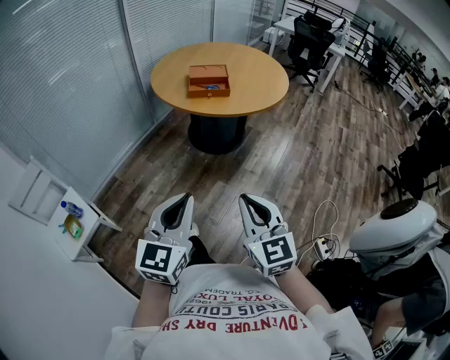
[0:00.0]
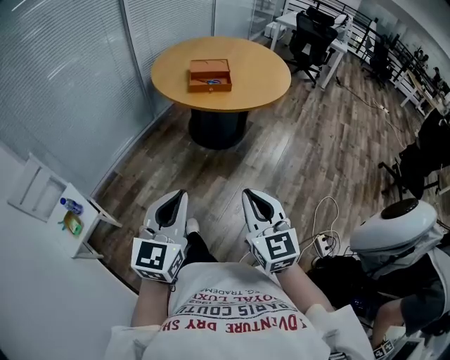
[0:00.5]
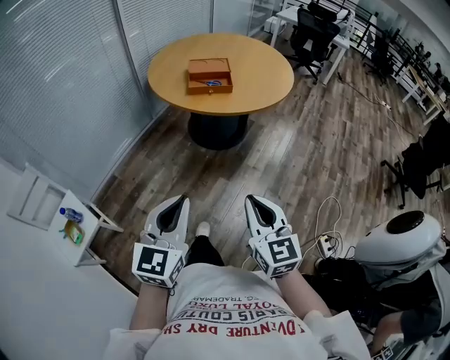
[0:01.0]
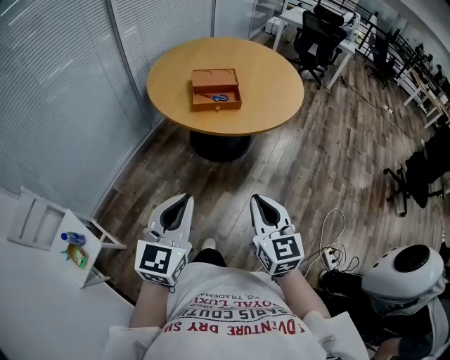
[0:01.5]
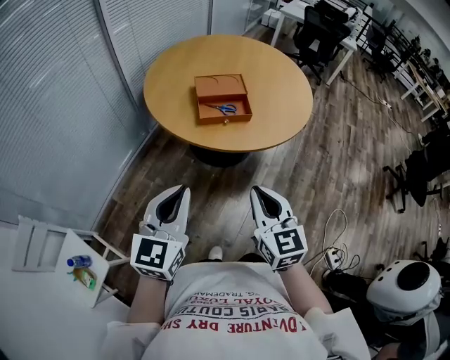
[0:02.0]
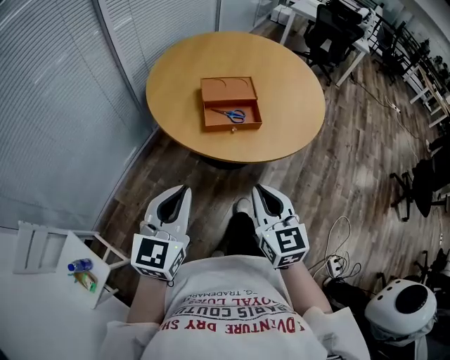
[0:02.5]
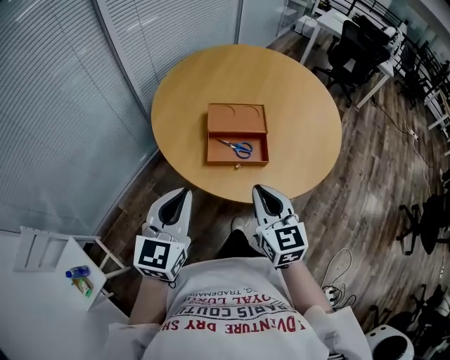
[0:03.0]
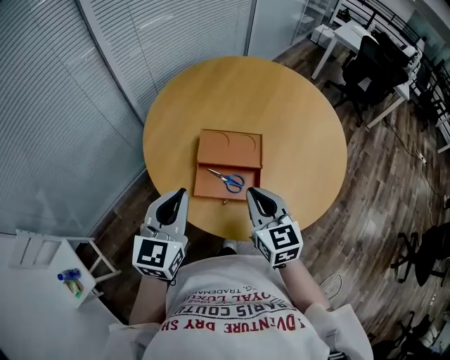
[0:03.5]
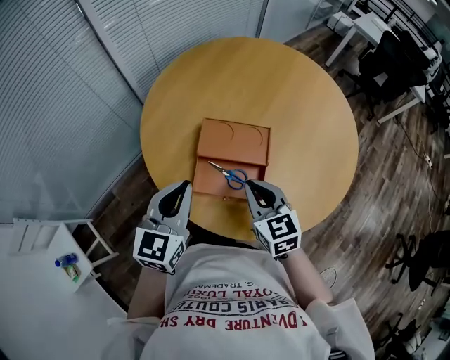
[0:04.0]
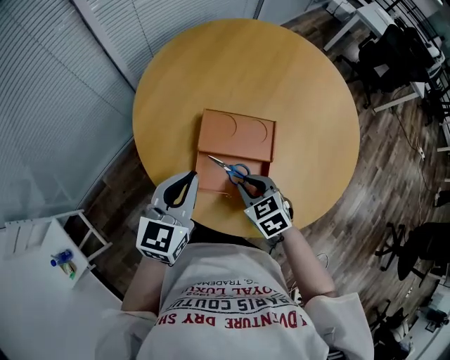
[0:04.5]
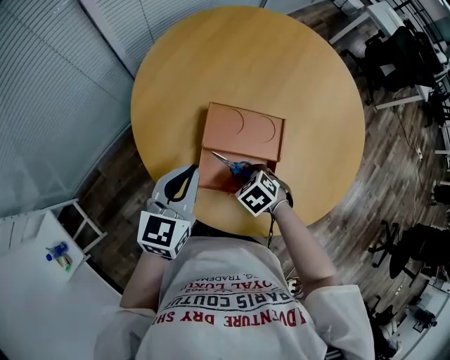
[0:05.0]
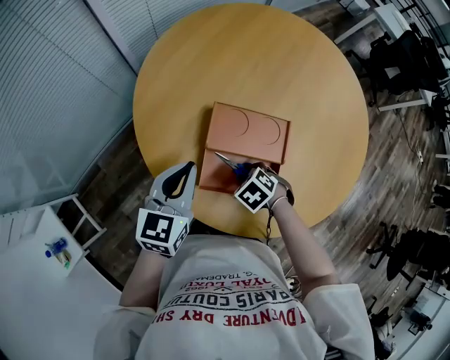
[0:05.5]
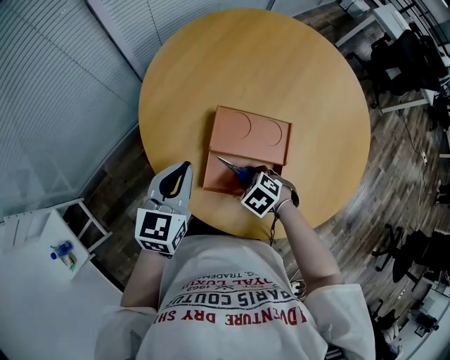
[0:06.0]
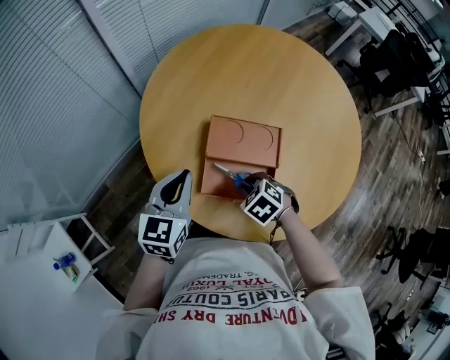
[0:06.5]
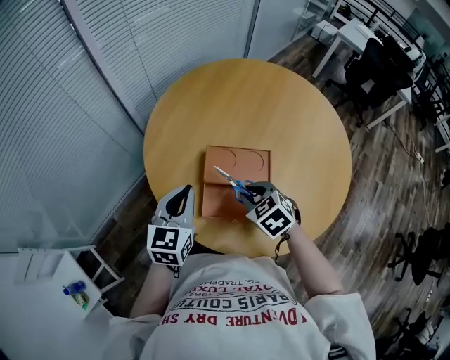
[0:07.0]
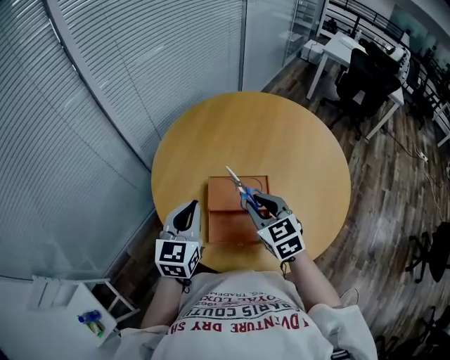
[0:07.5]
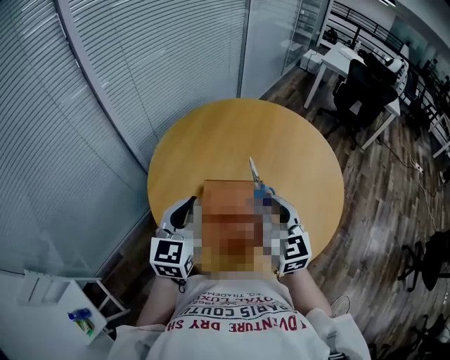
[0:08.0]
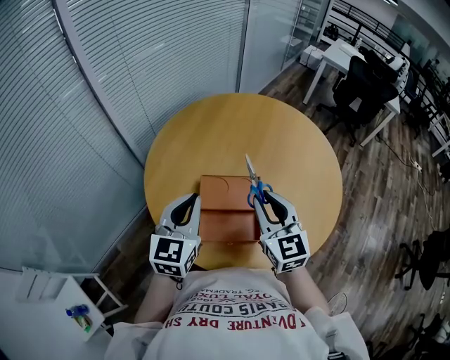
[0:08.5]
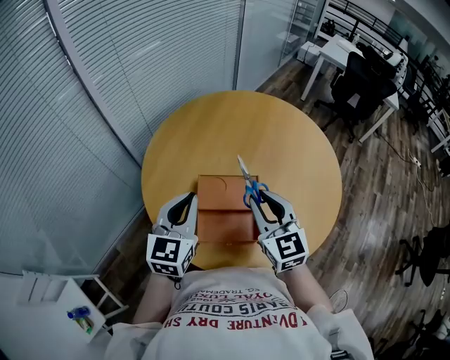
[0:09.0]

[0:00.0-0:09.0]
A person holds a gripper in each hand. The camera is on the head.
0:00.0 to 0:02.0: The two grippers go some 35 cm forward.
0:02.0 to 0:04.5: The two grippers travel together, forward, roughly 40 cm. The right gripper shifts approximately 20 cm downward, and tips its fingers downward by about 40 degrees.
0:04.5 to 0:07.0: The right gripper goes roughly 5 cm upward.
0:07.0 to 0:09.0: The left gripper is displaced upward by approximately 10 cm, while the right gripper shifts approximately 15 cm upward, and tilts its fingers roughly 40 degrees upward.

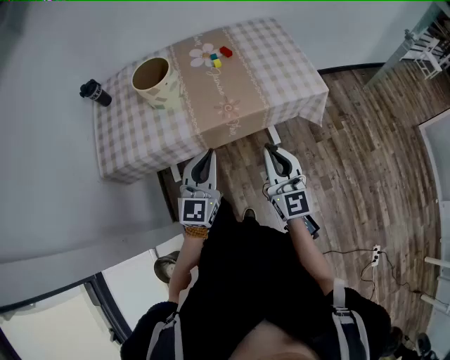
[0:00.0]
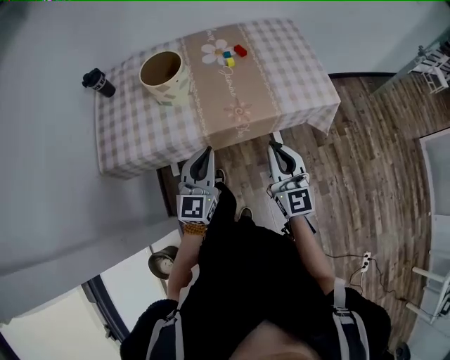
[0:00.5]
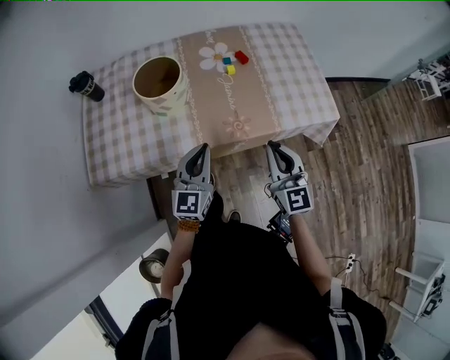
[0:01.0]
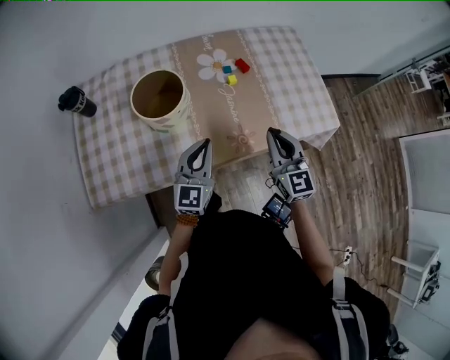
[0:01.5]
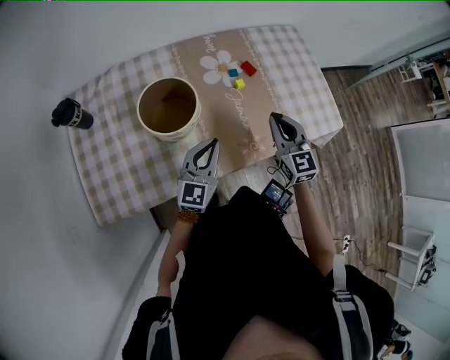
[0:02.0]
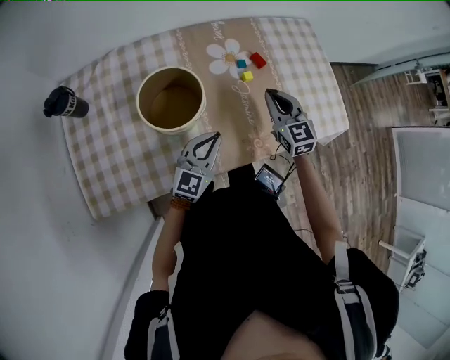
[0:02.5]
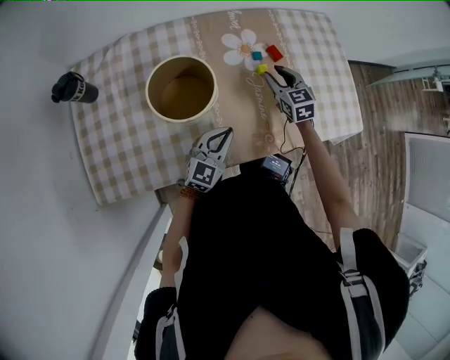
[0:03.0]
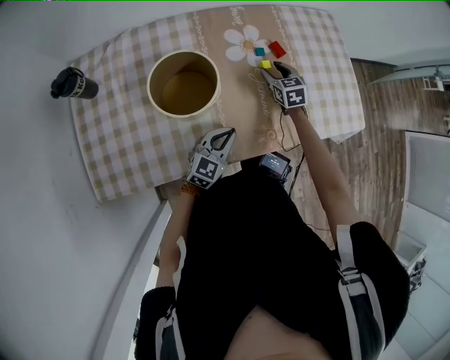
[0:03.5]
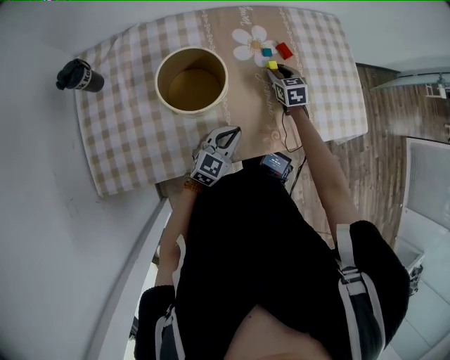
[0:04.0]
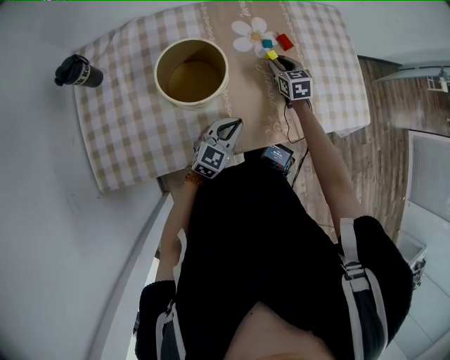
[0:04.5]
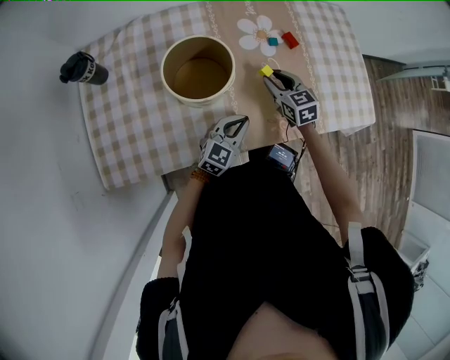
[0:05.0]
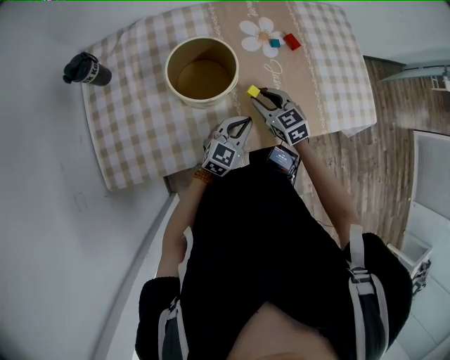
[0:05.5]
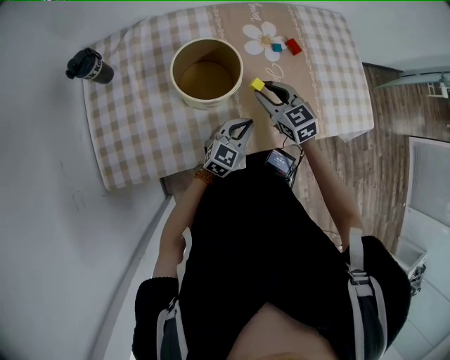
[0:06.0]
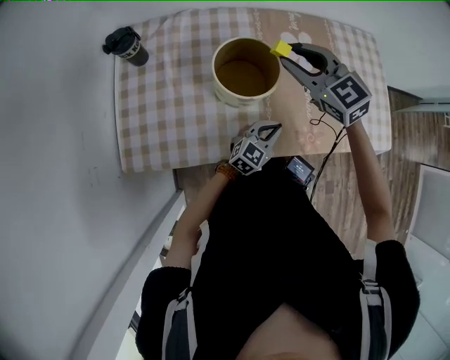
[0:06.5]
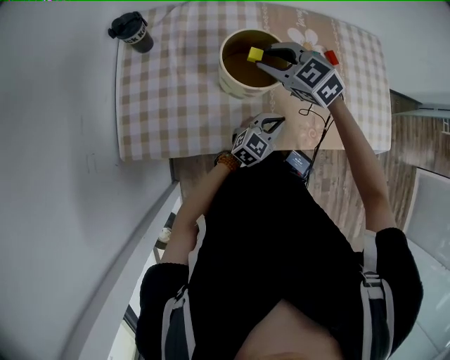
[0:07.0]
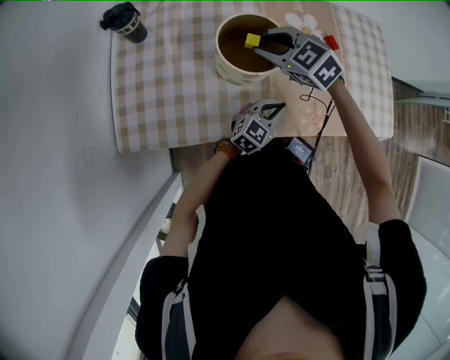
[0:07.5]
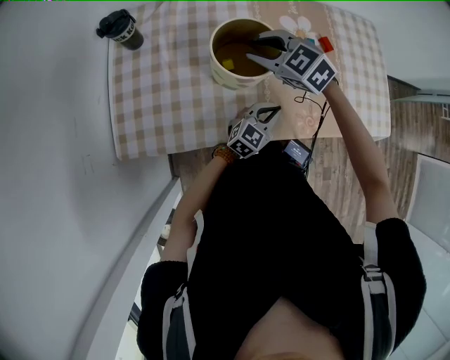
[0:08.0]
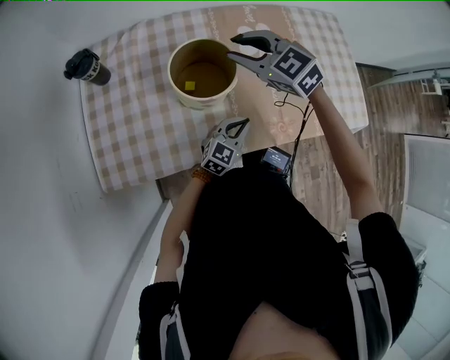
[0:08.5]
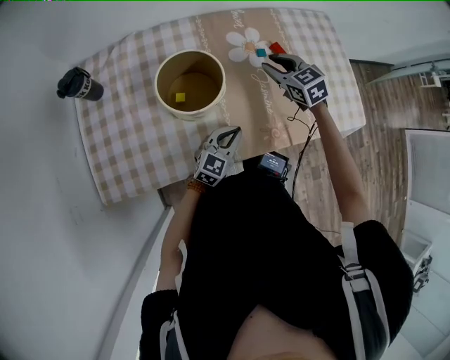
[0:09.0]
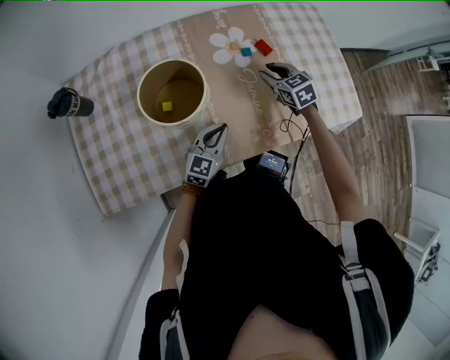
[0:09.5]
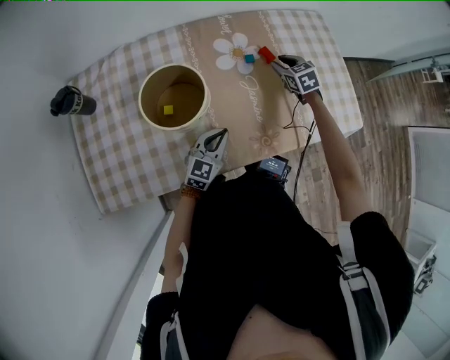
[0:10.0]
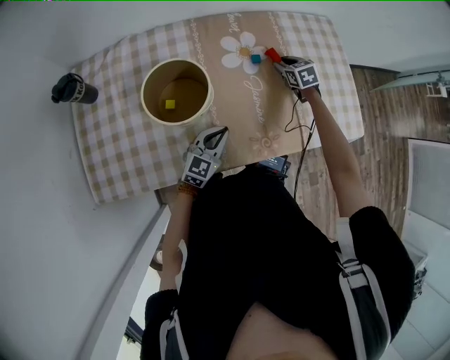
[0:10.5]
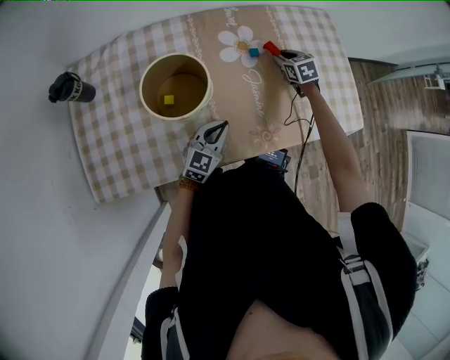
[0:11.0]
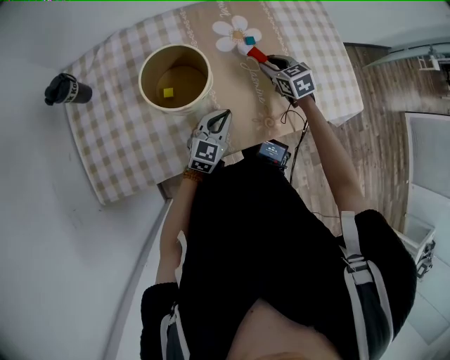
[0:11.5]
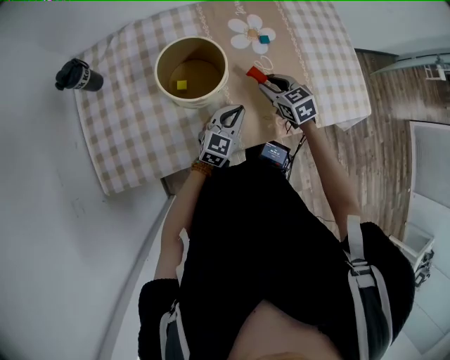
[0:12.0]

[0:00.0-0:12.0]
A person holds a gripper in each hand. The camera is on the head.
0:00.0 to 0:02.0: The right gripper goes some 35 cm forward. The left gripper shifts roughly 30 cm forward and to the left.
0:02.0 to 0:04.0: The left gripper shifts about 15 cm downward, while the right gripper goes about 30 cm downward and forward, changes its angle by about 30 degrees, and opens up.
0:04.0 to 0:06.0: The right gripper heads backward, to the left and upward, covering about 20 cm, and swivels some 20 degrees.
0:06.0 to 0:08.0: The right gripper shifts approximately 15 cm to the left and upward, and swivels approximately 30 degrees.
0:08.0 to 0:10.0: The right gripper goes roughly 40 cm to the right, forward and downward, and turns by roughly 40 degrees.
0:10.0 to 0:12.0: The right gripper heads backward and to the left, covering about 20 cm.

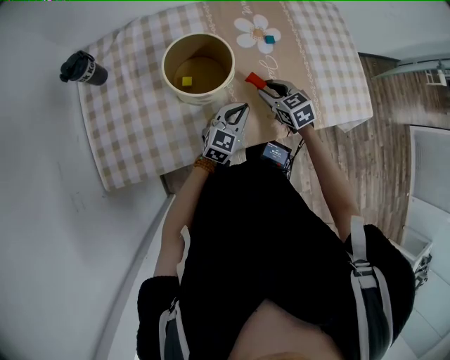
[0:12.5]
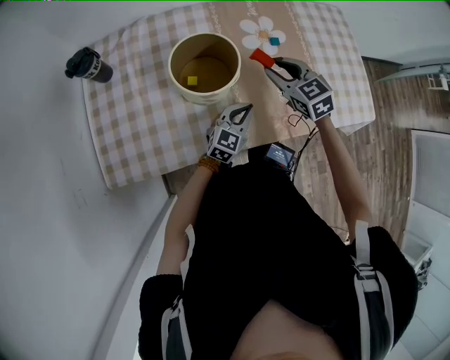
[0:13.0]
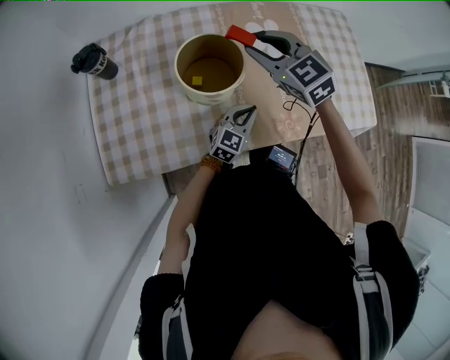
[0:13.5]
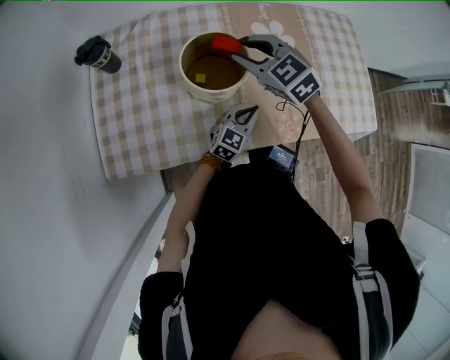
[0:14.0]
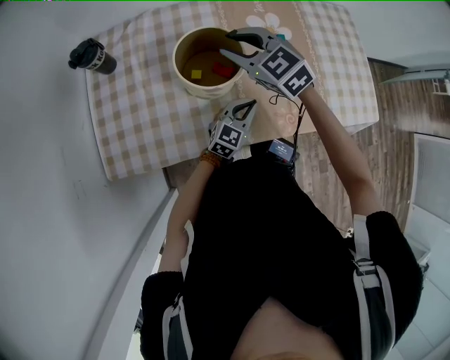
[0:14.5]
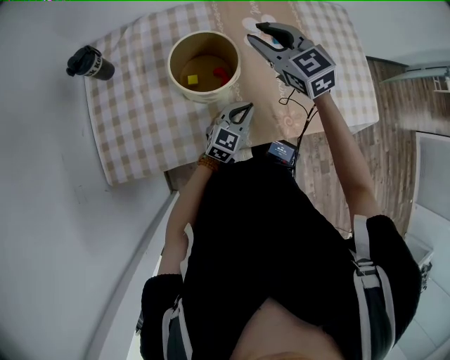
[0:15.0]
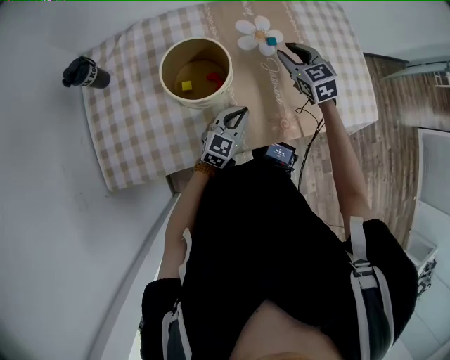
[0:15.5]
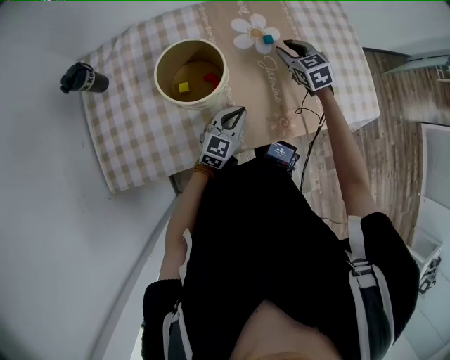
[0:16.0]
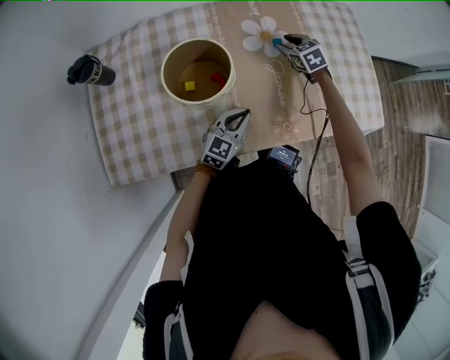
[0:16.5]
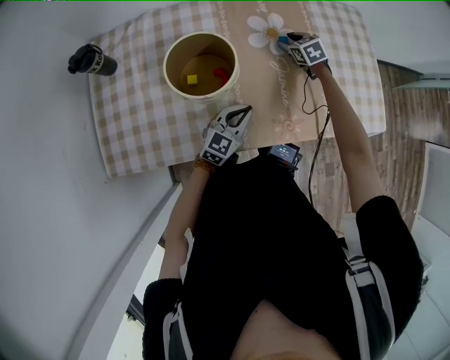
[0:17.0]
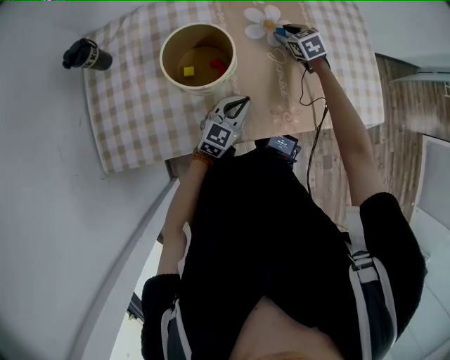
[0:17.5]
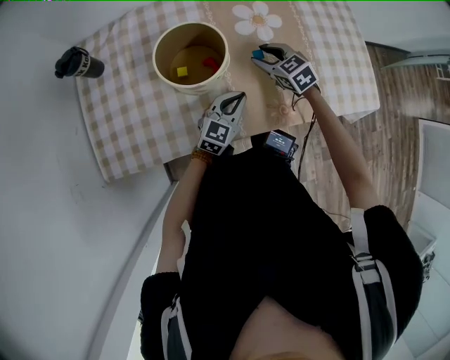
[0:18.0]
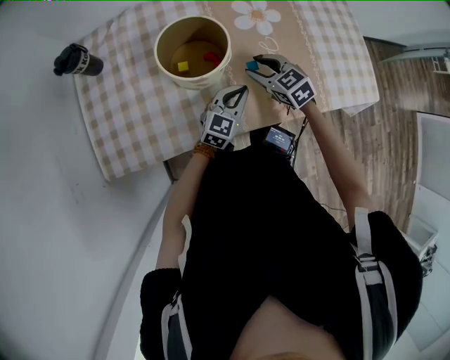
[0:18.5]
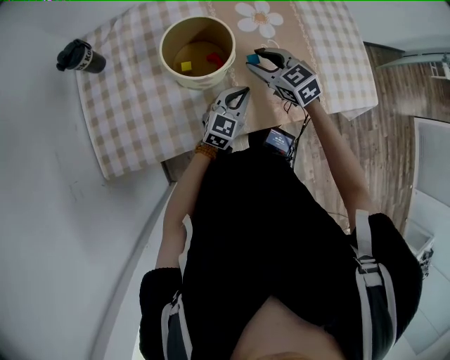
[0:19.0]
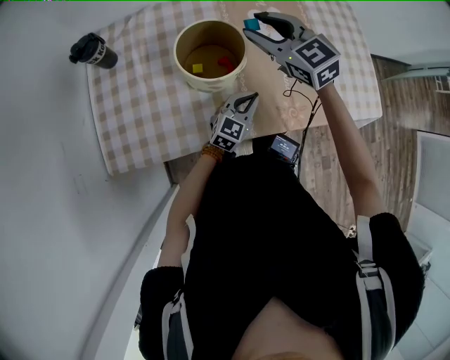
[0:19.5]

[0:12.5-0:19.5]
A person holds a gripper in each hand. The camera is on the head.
0:12.5 to 0:14.5: The right gripper is displaced upward and to the left by approximately 25 cm, and rotates some 30 degrees.
0:14.5 to 0:16.0: The right gripper heads to the right and downward, covering approximately 25 cm, and swivels some 30 degrees.
0:16.0 to 0:17.5: The right gripper goes about 10 cm downward and forward.
0:17.5 to 0:19.5: The right gripper heads upward, to the left and backward, covering some 30 cm, and turns by roughly 30 degrees.
